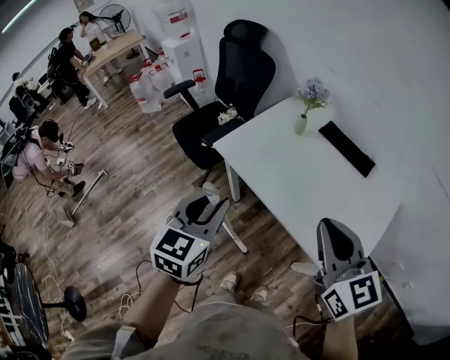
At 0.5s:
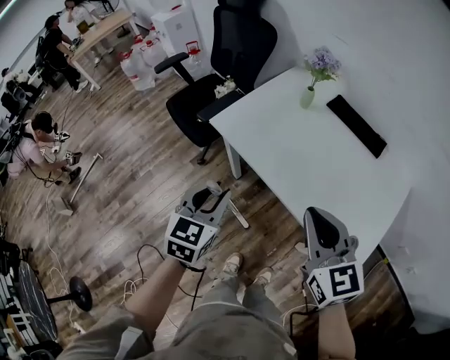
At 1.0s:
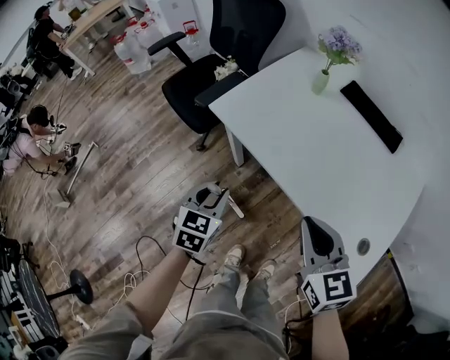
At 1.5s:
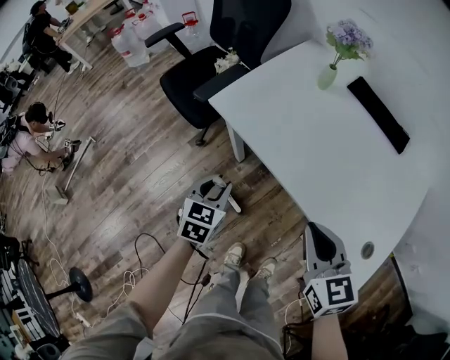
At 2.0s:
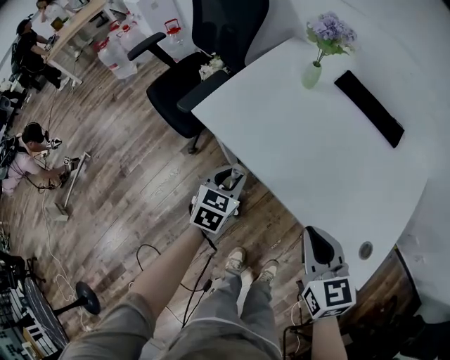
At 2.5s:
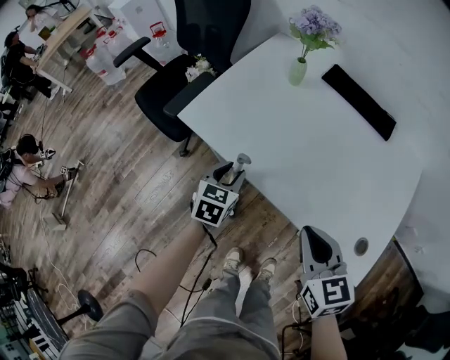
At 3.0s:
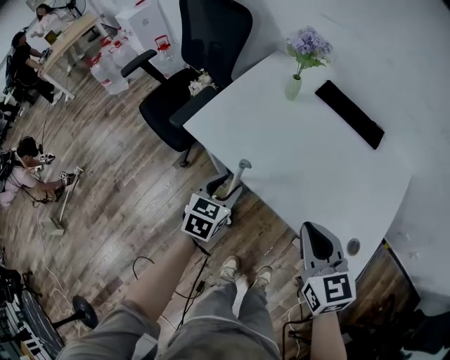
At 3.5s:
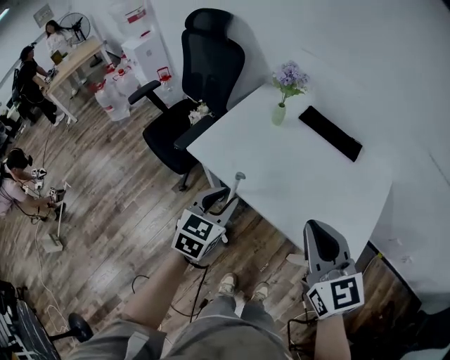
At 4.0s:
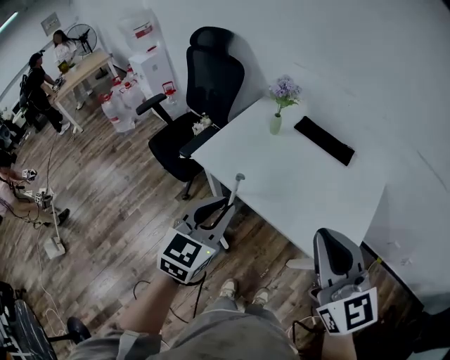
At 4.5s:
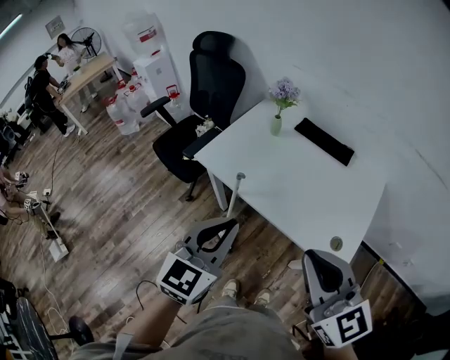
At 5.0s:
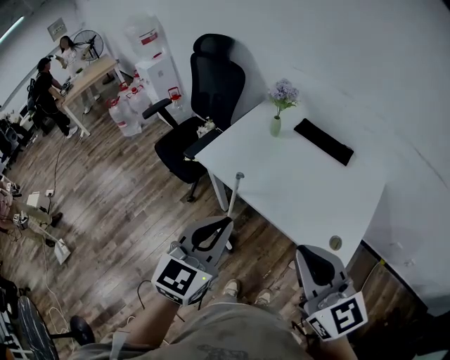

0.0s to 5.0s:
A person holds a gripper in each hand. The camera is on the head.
0.0s to 2.5s: The left gripper travels downward and forward by approximately 35 cm, and changes its angle by some 20 degrees, while the right gripper moves downward, approximately 25 cm, and swivels some 20 degrees.
2.5s to 5.0s: Both grippers move upward and backward, some 35 cm. The right gripper turns by roughly 30 degrees. Meanwhile the left gripper turns by some 30 degrees, and closes.

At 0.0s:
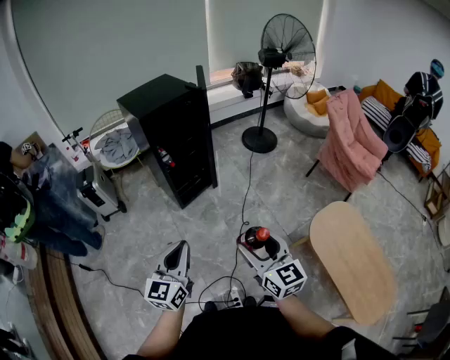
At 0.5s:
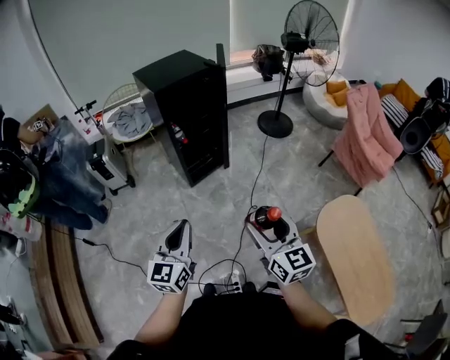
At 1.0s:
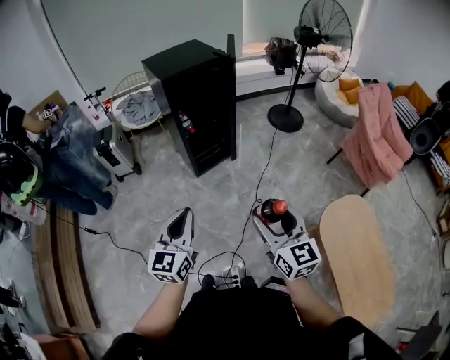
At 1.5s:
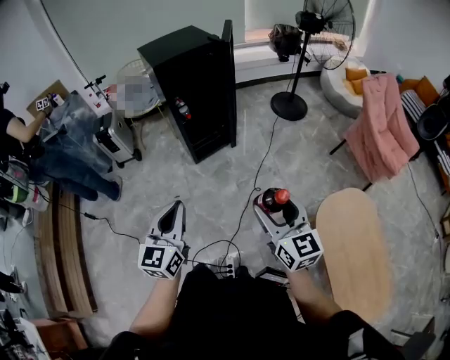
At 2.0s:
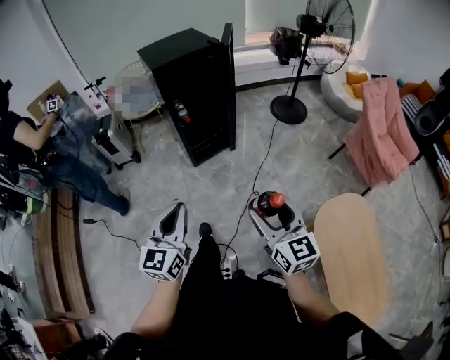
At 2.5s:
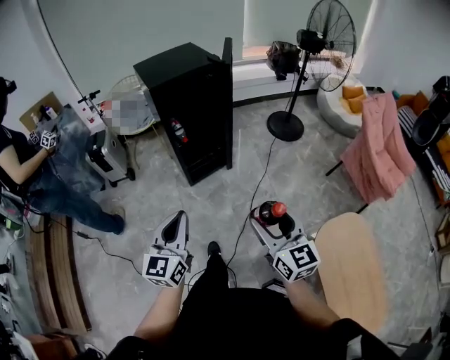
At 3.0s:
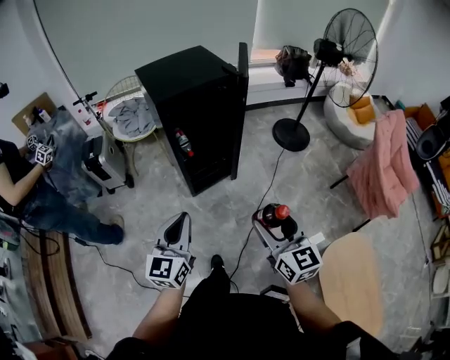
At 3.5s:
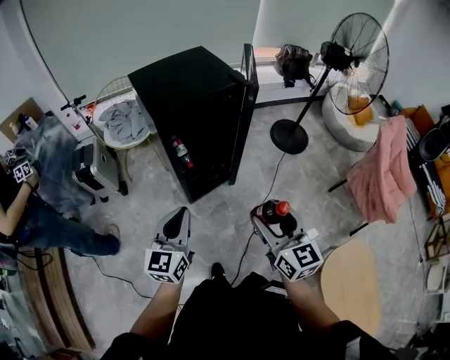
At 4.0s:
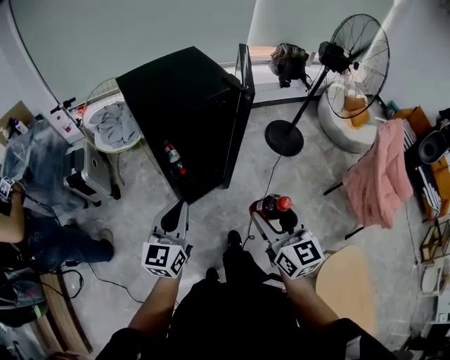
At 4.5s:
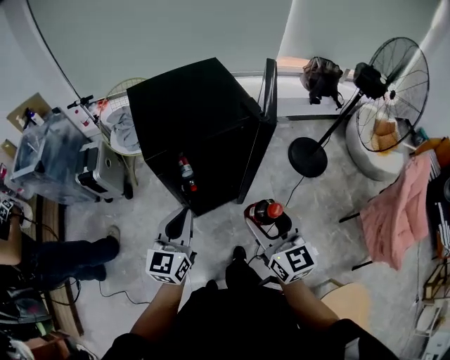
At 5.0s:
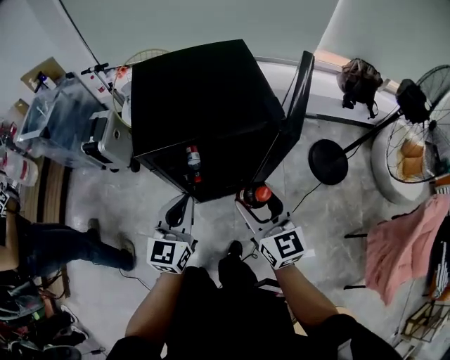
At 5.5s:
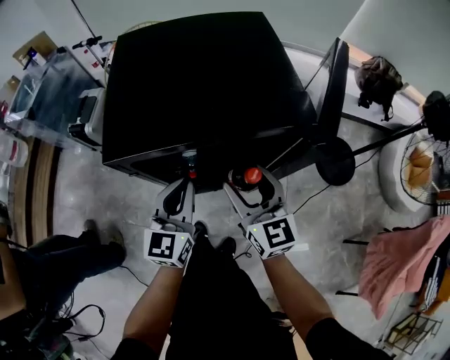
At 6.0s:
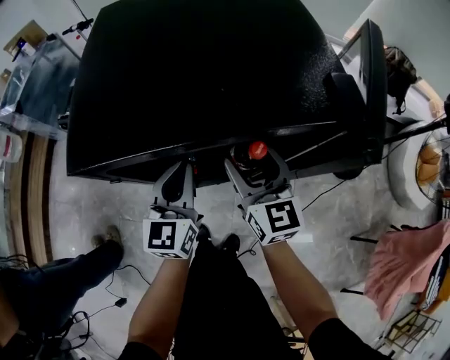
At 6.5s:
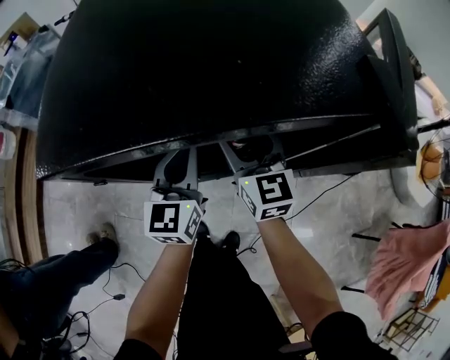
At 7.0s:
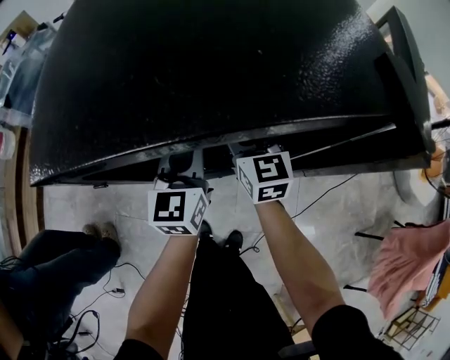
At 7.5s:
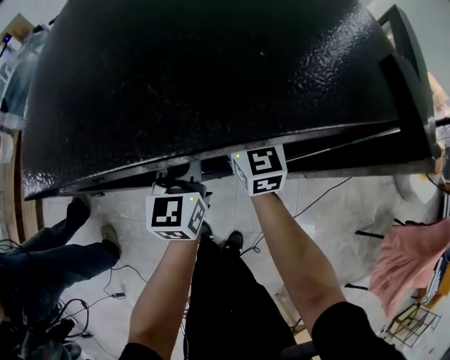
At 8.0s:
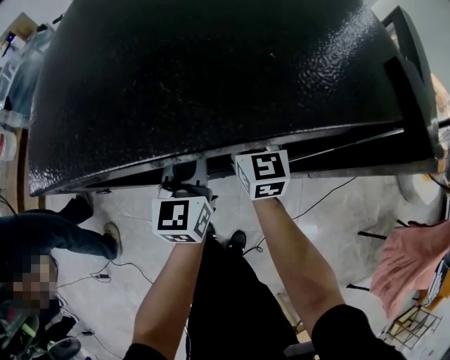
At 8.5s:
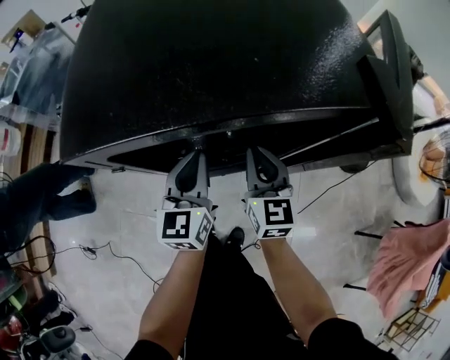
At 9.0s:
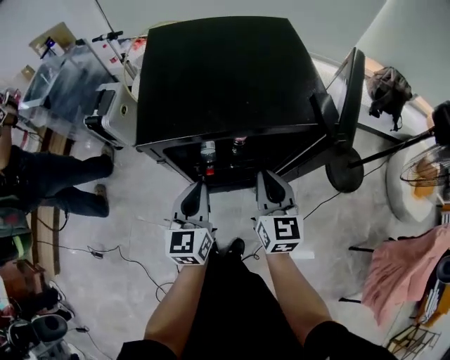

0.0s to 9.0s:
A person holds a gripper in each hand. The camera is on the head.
0.0s to 2.0s: The grippers both shift to the right by some 10 cm.
2.0s to 4.5s: The two grippers travel together, forward, approximately 50 cm.
4.5s to 7.0s: The two grippers go some 40 cm forward and downward. The left gripper swivels some 20 degrees.
7.0s to 9.0s: Both grippers travel together backward and upward, some 20 cm. The right gripper closes.

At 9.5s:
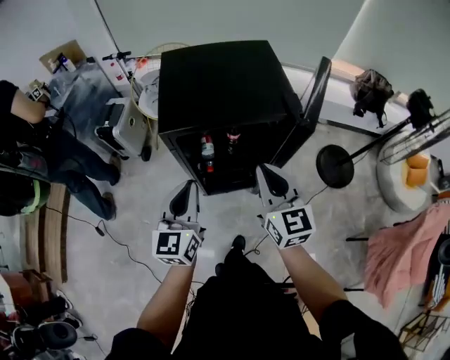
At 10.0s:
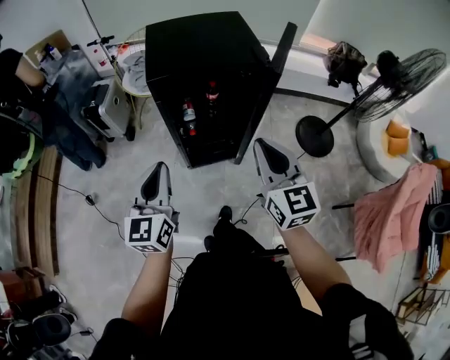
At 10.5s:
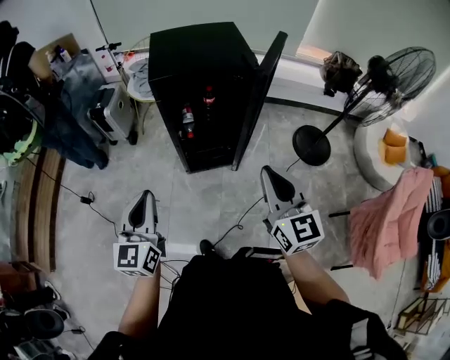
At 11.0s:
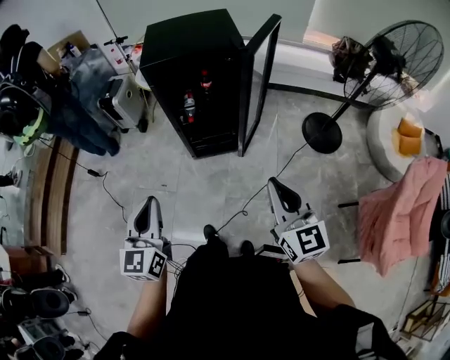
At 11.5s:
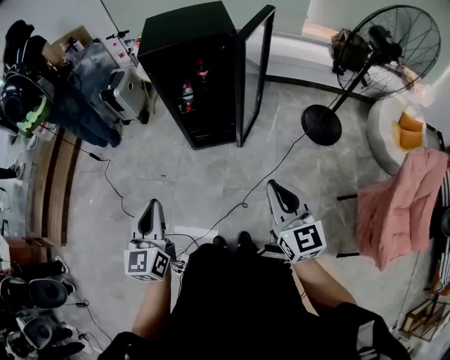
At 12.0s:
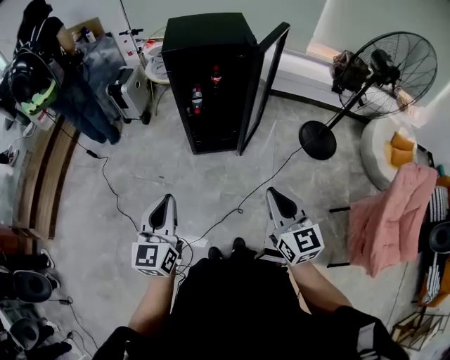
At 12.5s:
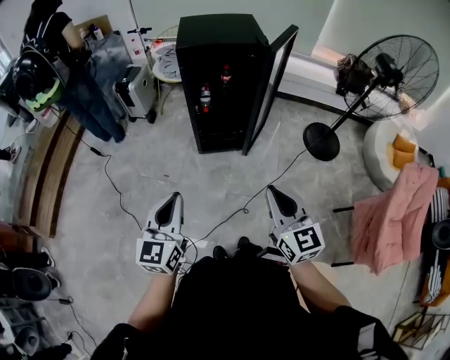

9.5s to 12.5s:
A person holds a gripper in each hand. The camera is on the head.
9.5s to 11.0s: The grippers both shift backward by approximately 35 cm.
11.0s to 12.5s: The right gripper moves backward and to the left, roughly 15 cm. The left gripper shifts roughly 10 cm backward.

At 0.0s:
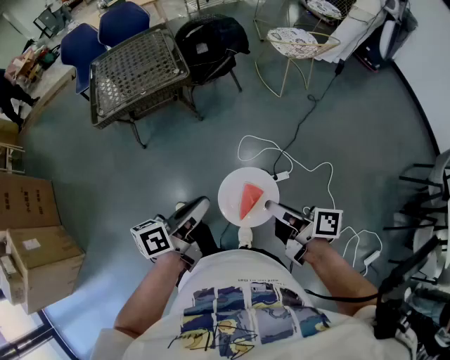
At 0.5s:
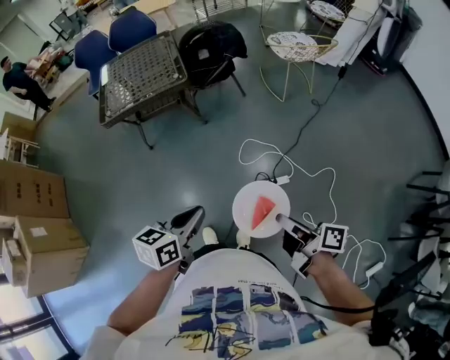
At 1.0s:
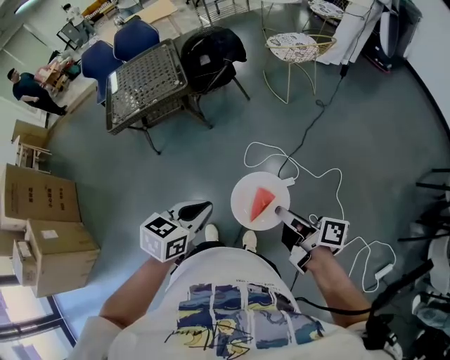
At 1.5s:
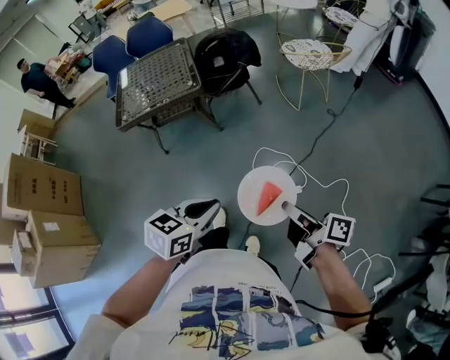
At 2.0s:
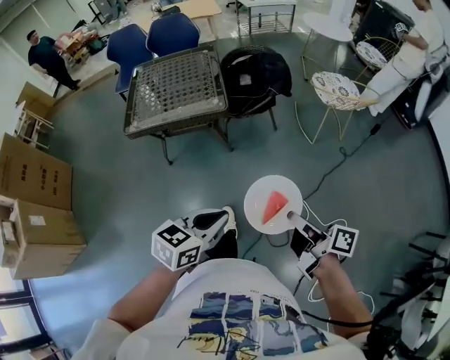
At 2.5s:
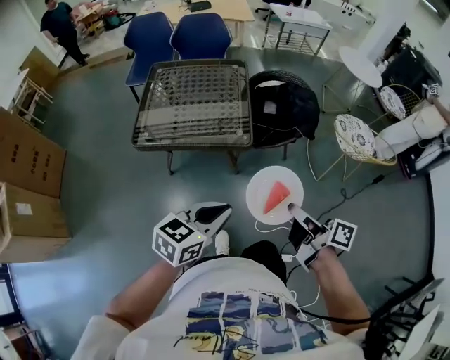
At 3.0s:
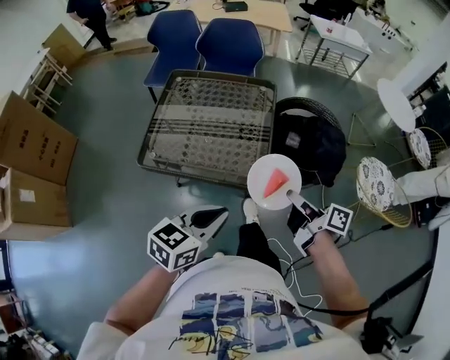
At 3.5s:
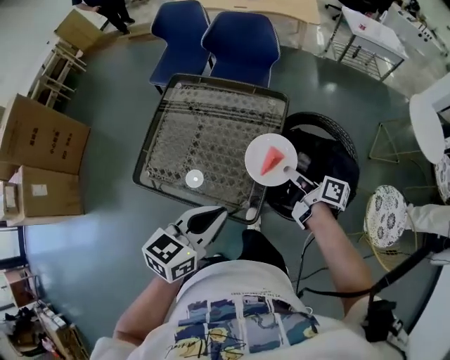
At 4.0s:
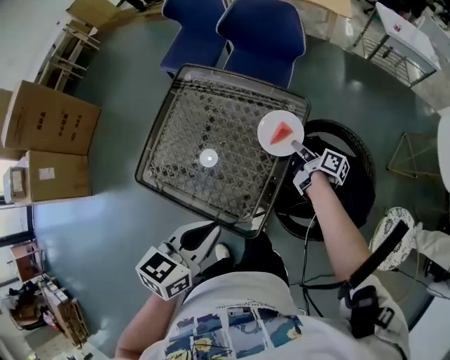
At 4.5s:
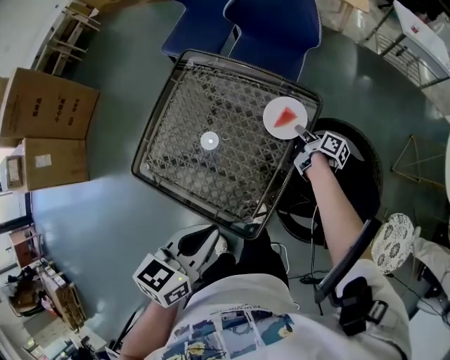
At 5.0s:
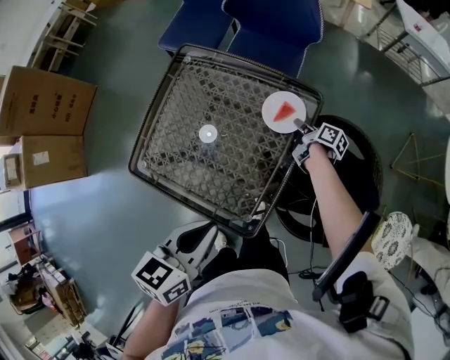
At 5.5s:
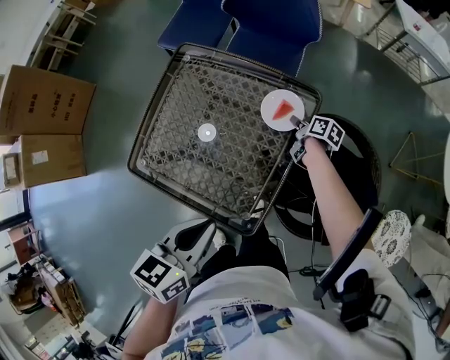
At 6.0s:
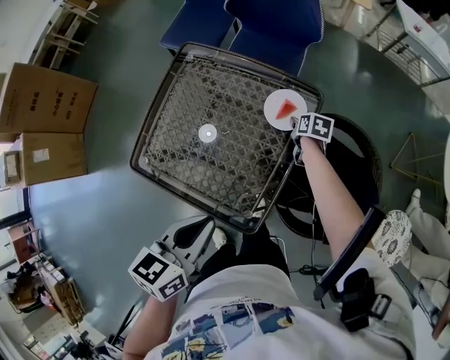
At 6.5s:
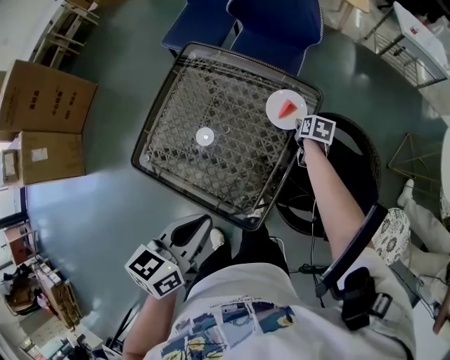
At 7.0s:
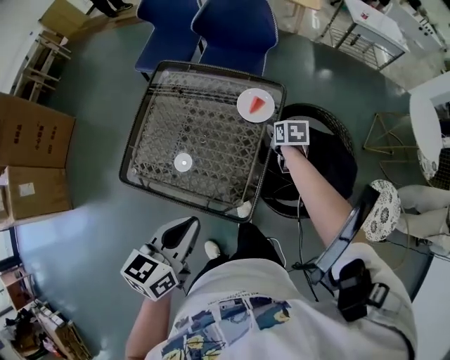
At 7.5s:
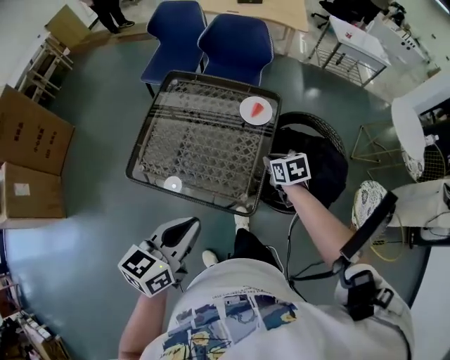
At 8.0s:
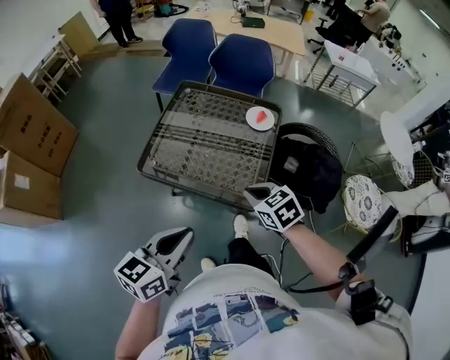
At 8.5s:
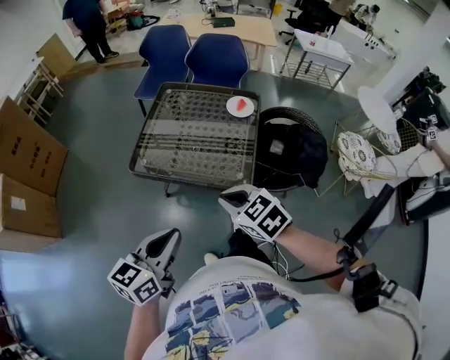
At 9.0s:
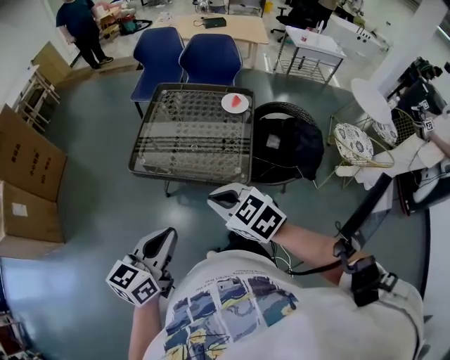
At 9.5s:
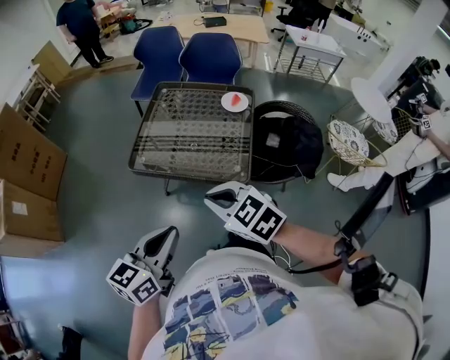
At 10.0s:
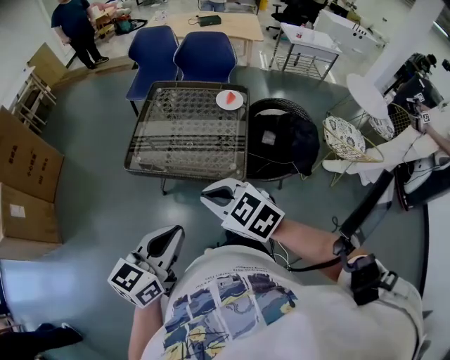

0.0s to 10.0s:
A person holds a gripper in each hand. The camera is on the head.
0.0s to 2.0s: Both grippers move forward, approximately 15 cm. The left gripper swivels approximately 40 degrees.
2.0s to 4.0s: Both grippers are carried approximately 80 cm. The right gripper swivels some 30 degrees; the left gripper rotates about 40 degrees.
4.0s to 6.0s: The right gripper moves downward and forward, roughly 10 cm, tips its fingers downward by roughly 40 degrees, and opens.
6.0s to 8.0s: The right gripper travels backward, upward and to the left by some 50 cm, rolls counterclockwise, seen from behind, by some 40 degrees, and closes. The left gripper heads backward and to the left, covering some 30 cm, and turns by approximately 20 degrees.
8.0s to 10.0s: The left gripper is displaced backward by approximately 10 cm. The right gripper travels backward, to the left and upward by some 20 cm.
